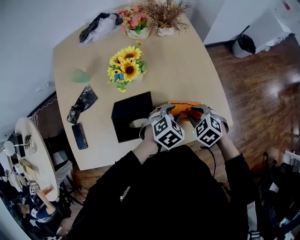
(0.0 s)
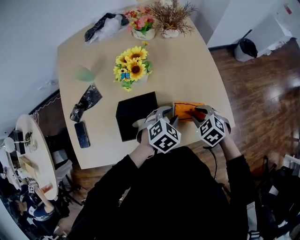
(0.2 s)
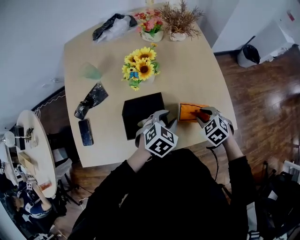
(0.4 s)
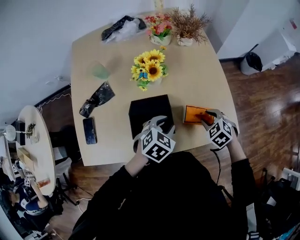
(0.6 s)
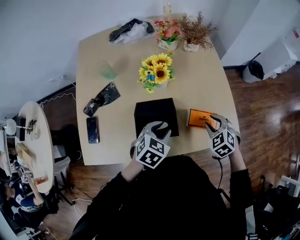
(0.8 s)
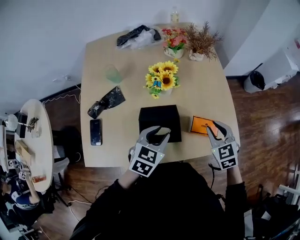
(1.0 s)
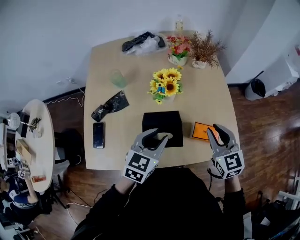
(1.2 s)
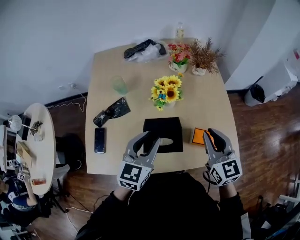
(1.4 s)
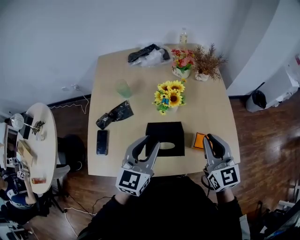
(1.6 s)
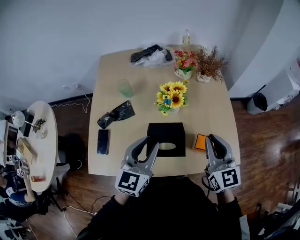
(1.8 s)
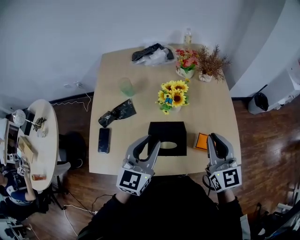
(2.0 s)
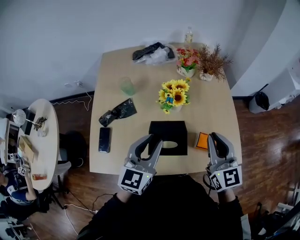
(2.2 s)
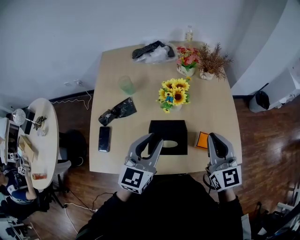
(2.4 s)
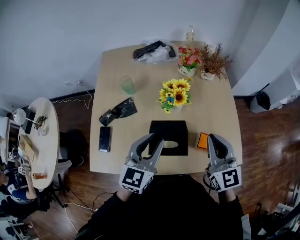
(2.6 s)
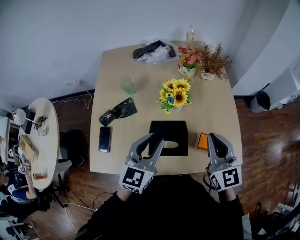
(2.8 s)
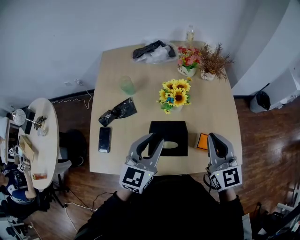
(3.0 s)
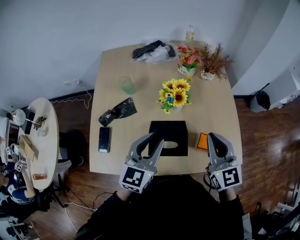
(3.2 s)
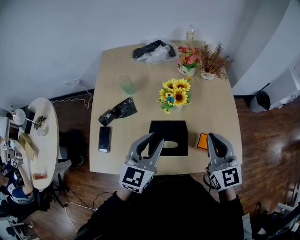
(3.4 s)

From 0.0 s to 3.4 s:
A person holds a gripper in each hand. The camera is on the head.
From 0.0 s to 1.6 s: The right gripper travels upward by some 25 cm, and tilts its fingers some 50 degrees upward. Meanwhile the left gripper is displaced to the left and upward by roughly 30 cm, and tips its fingers upward by about 50 degrees.
From 1.6 s to 3.4 s: The grippers move only a little.

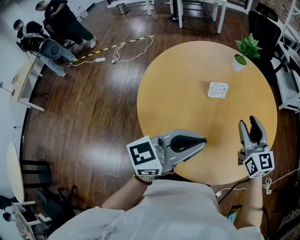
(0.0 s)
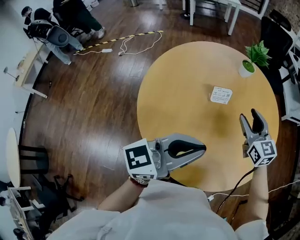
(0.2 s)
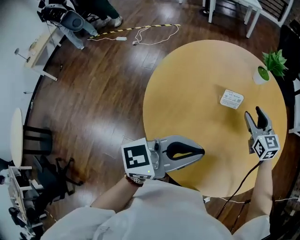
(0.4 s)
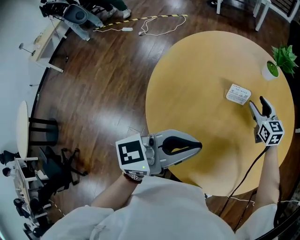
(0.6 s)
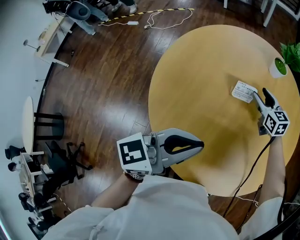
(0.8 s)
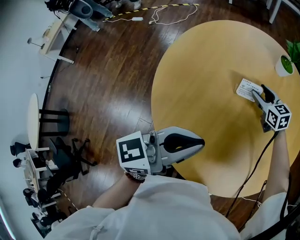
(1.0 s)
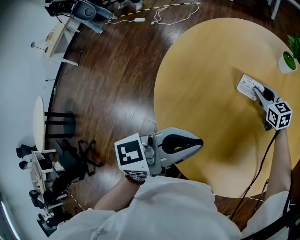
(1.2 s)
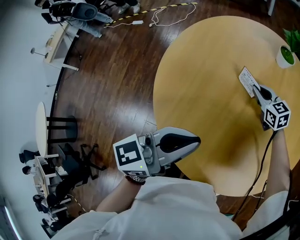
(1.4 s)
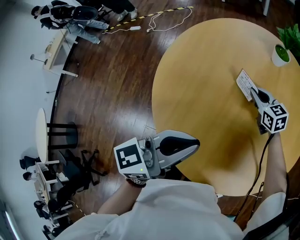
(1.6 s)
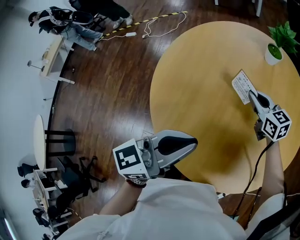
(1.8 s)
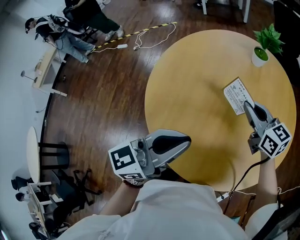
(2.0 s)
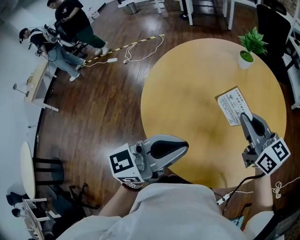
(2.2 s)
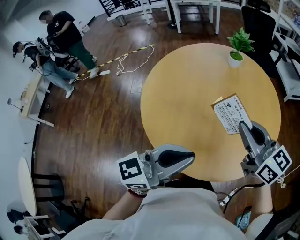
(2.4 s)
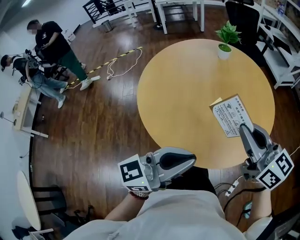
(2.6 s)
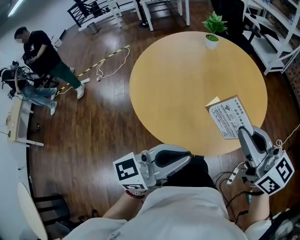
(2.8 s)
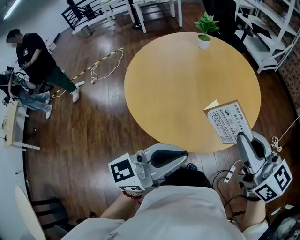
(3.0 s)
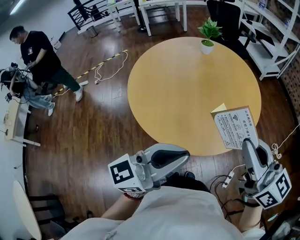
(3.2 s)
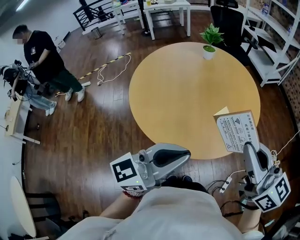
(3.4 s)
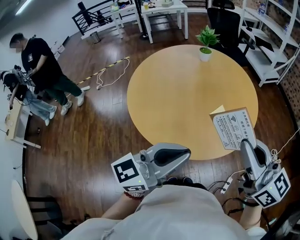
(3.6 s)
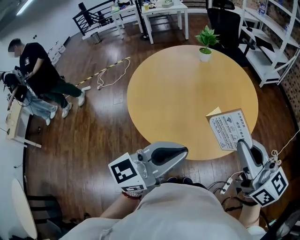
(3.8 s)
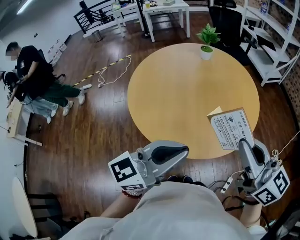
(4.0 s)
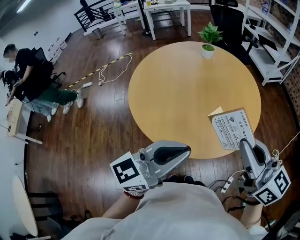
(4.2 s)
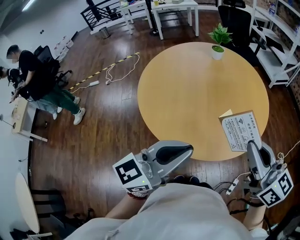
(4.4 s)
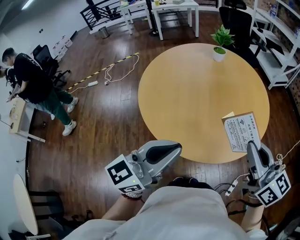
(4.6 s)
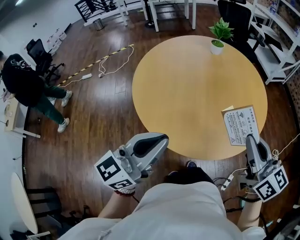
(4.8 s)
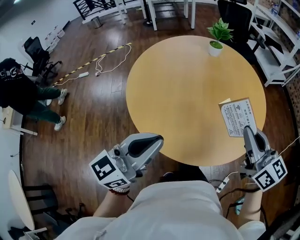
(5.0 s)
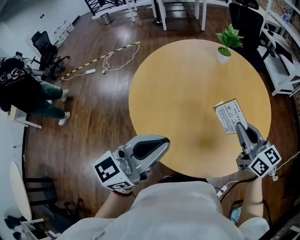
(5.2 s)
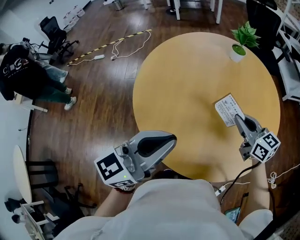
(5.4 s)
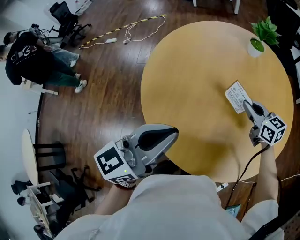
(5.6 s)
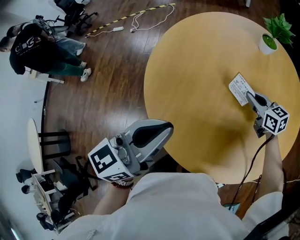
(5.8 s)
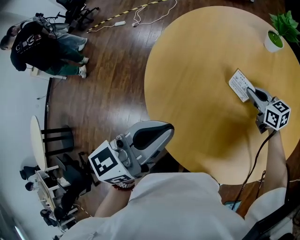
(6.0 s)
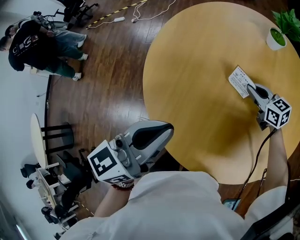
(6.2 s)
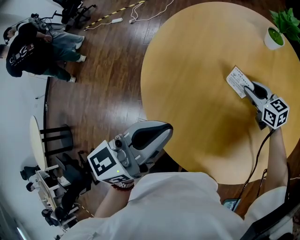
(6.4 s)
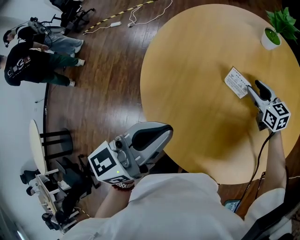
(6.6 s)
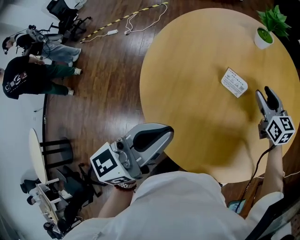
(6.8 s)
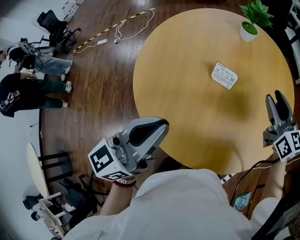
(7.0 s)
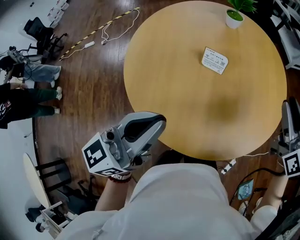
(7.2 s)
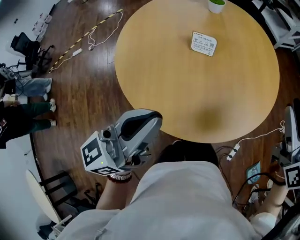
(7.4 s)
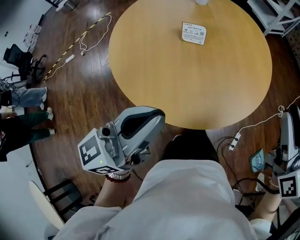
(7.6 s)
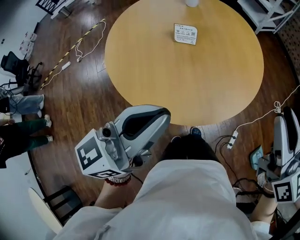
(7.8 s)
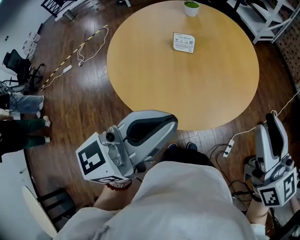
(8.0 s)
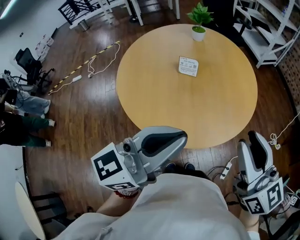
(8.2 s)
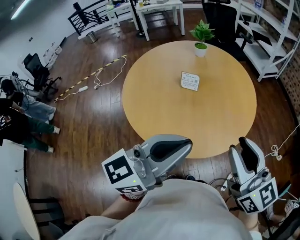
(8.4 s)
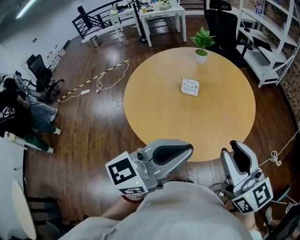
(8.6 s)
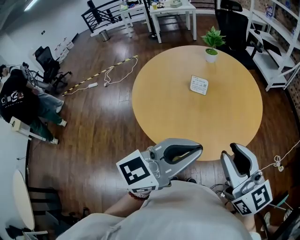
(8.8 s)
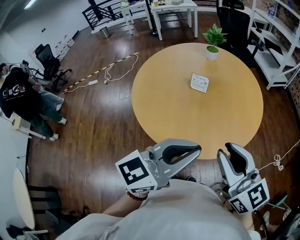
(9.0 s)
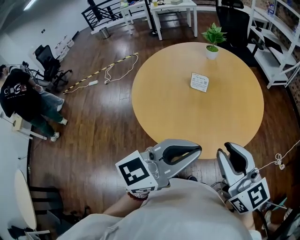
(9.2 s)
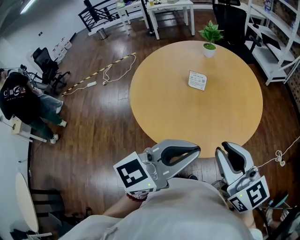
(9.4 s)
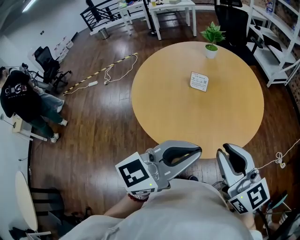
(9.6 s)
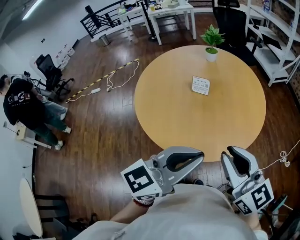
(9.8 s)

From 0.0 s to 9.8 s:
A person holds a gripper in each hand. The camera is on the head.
From 0.0 s to 1.4 s: The right gripper shifts some 35 cm downward and forward, turns by approximately 30 degrees, and closes its fingers, while the left gripper shifts about 15 cm downward and forward, and swivels some 20 degrees.
From 1.4 s to 2.8 s: The left gripper shifts by about 30 cm, and turns by roughly 30 degrees. The right gripper changes place by about 60 cm, and rotates roughly 40 degrees.
From 2.8 s to 4.2 s: The left gripper shifts by some 5 cm; the right gripper travels to the right by some 5 cm.
From 4.2 s to 5.6 s: The left gripper is displaced forward by approximately 25 cm, and swivels some 30 degrees. The right gripper travels forward and downward by about 50 cm, and changes its angle by about 30 degrees.
From 5.6 s to 7.0 s: The right gripper travels upward and to the right by roughly 10 cm, changes its angle by some 30 degrees, and opens up.
From 7.0 s to 8.4 s: The left gripper shifts approximately 30 cm backward, to the right and upward, and rotates roughly 30 degrees, while the right gripper shifts approximately 40 cm backward and upward.
From 8.4 s to 9.8 s: The left gripper changes place by roughly 5 cm.

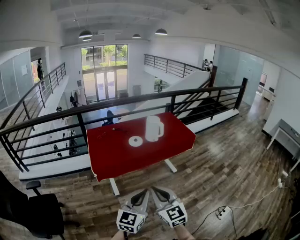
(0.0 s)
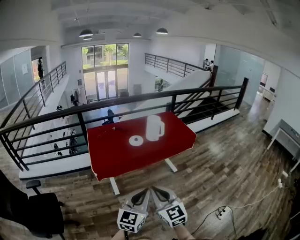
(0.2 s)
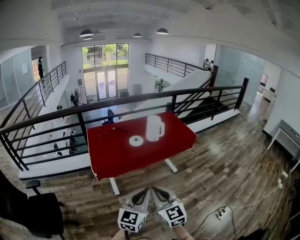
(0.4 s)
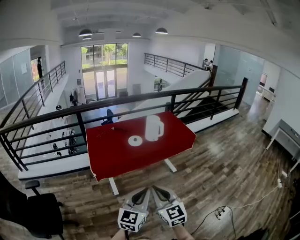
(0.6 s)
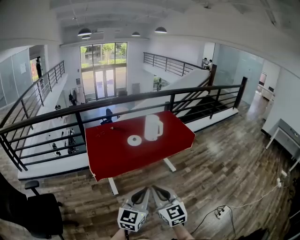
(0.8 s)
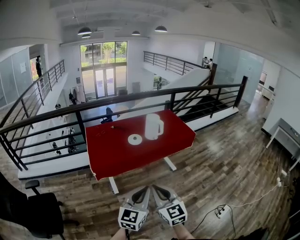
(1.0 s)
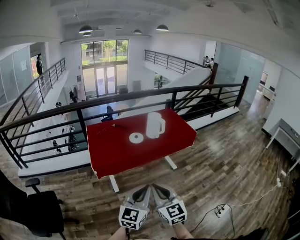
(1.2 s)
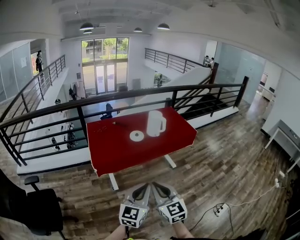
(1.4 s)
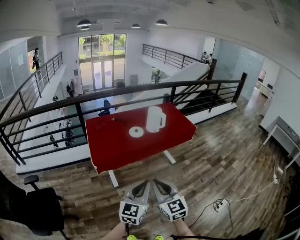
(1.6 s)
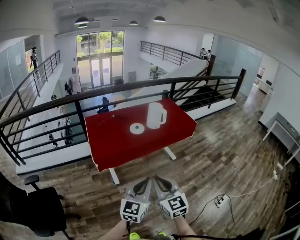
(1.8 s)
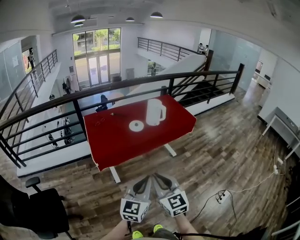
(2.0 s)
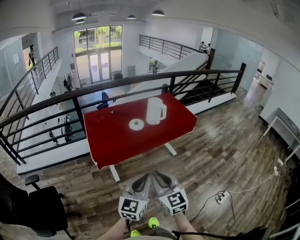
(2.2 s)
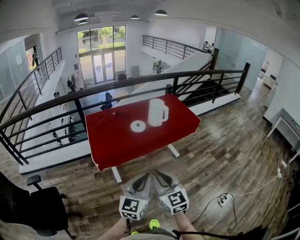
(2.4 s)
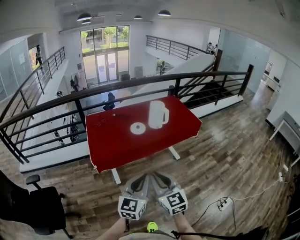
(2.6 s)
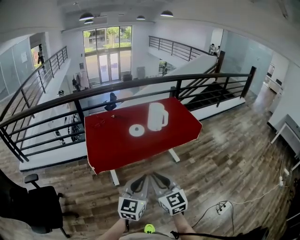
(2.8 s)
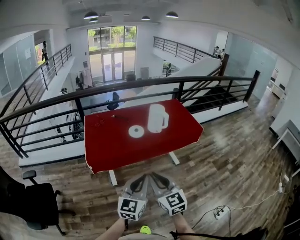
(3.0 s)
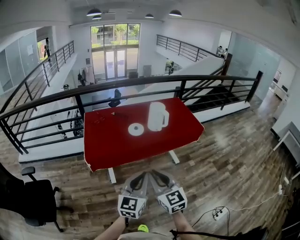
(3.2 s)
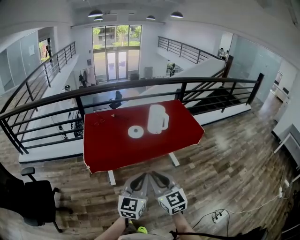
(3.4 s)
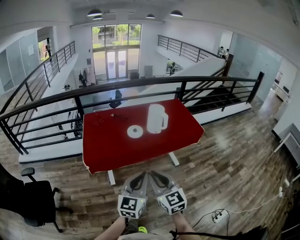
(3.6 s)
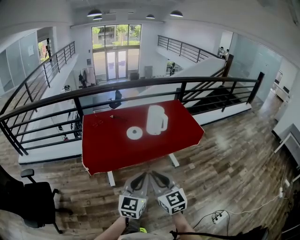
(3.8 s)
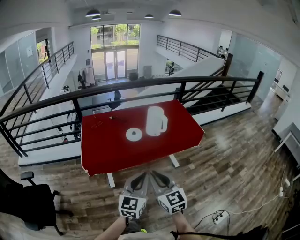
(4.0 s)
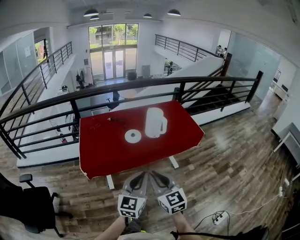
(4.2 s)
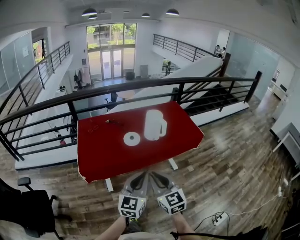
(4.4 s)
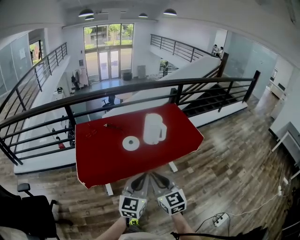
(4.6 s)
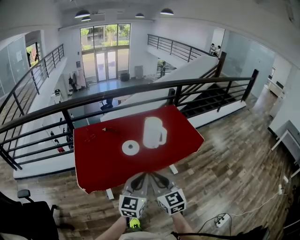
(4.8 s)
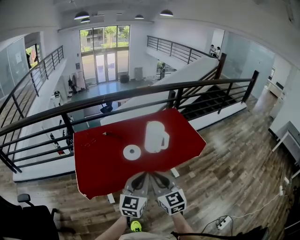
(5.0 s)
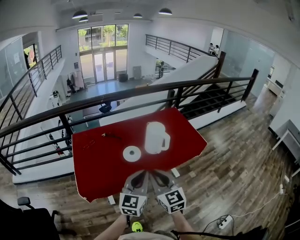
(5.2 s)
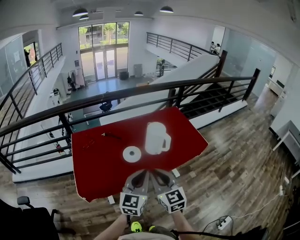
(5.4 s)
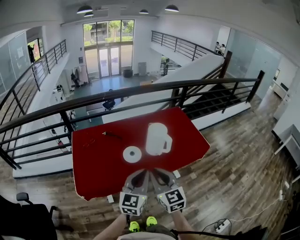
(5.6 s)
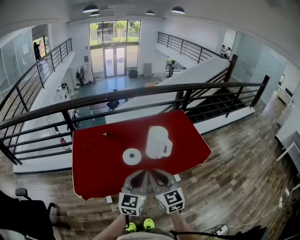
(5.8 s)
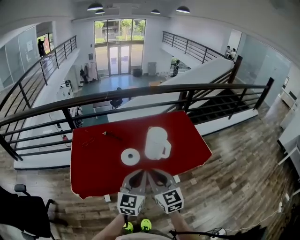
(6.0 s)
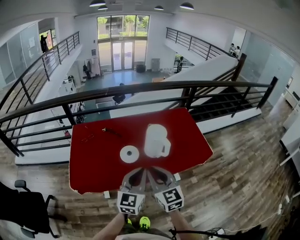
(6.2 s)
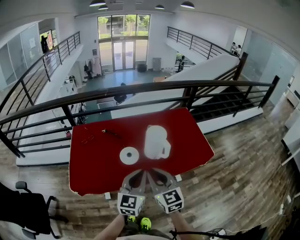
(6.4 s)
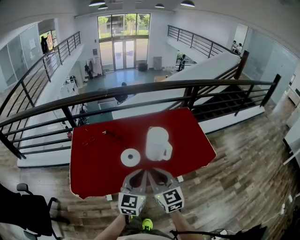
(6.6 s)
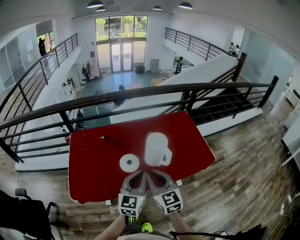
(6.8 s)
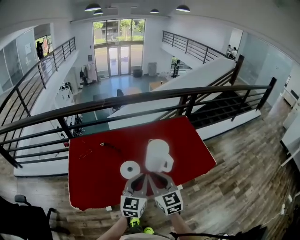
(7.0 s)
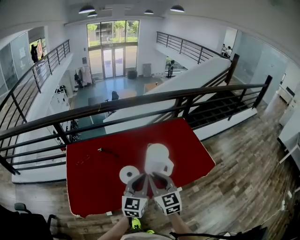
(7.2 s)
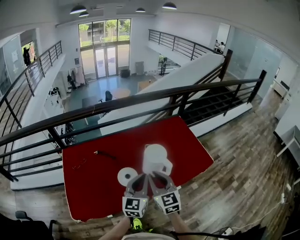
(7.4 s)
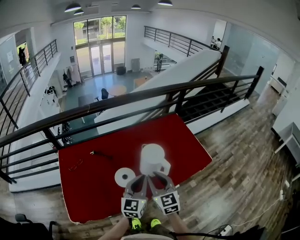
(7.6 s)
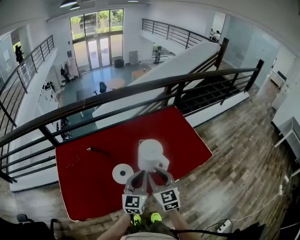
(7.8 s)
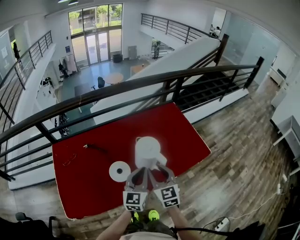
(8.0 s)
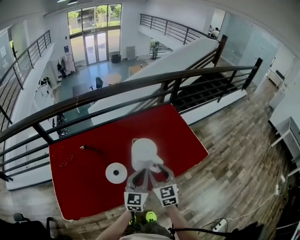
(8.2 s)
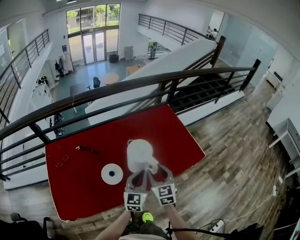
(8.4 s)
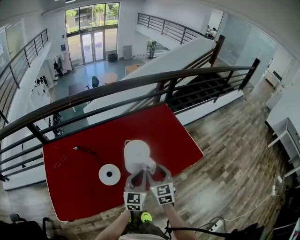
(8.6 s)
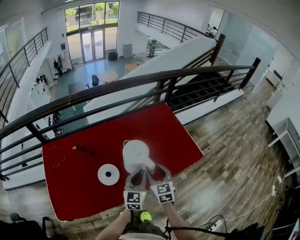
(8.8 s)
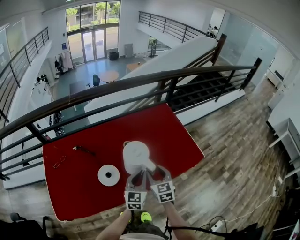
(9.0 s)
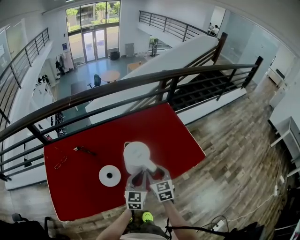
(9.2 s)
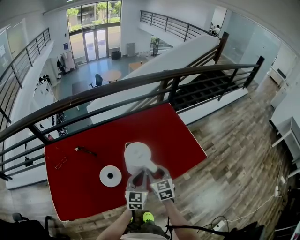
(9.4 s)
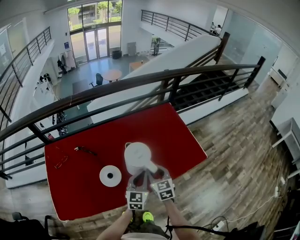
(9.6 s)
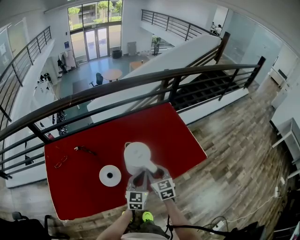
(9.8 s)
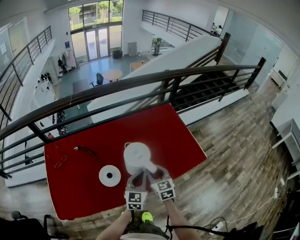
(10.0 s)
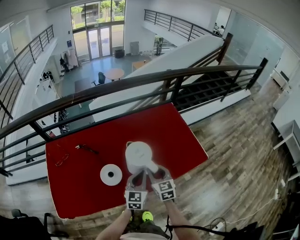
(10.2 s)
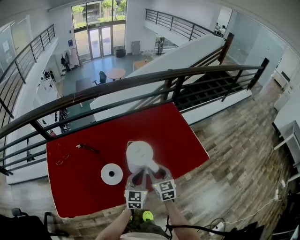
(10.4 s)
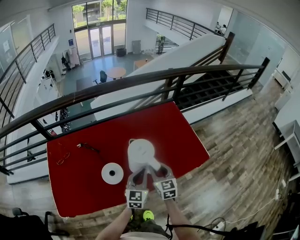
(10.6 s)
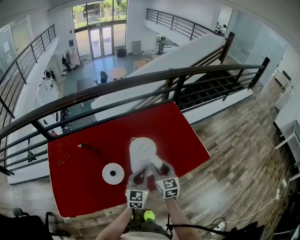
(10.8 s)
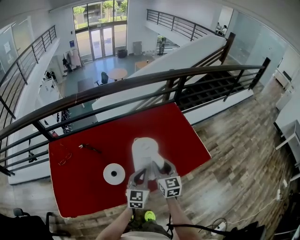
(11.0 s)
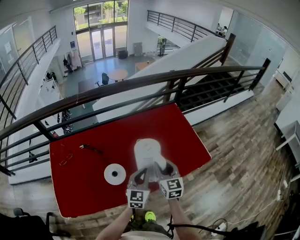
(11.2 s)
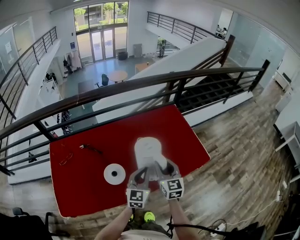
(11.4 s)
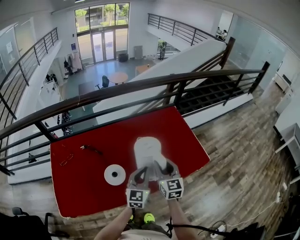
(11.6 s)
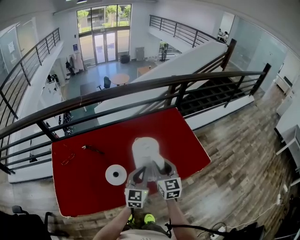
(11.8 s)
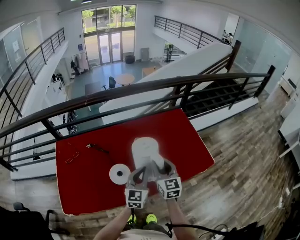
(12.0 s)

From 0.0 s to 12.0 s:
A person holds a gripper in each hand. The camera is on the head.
From 0.0 s to 1.6 s: There are only small adjustments of the grippers.
From 1.6 s to 3.0 s: Both grippers travel together forward and to the right, about 15 cm.
From 3.0 s to 4.4 s: Both grippers move forward, approximately 15 cm.
From 4.4 s to 6.0 s: The grippers both shift forward by roughly 25 cm.
From 6.0 s to 7.6 s: Both grippers move forward, some 20 cm.
From 7.6 s to 9.0 s: The two grippers go some 20 cm downward, to the right and forward. The right gripper opens.
From 9.0 s to 10.4 s: The grippers make only small movements.
From 10.4 s to 12.0 s: The left gripper moves upward, roughly 5 cm; the right gripper moves upward, approximately 10 cm.
